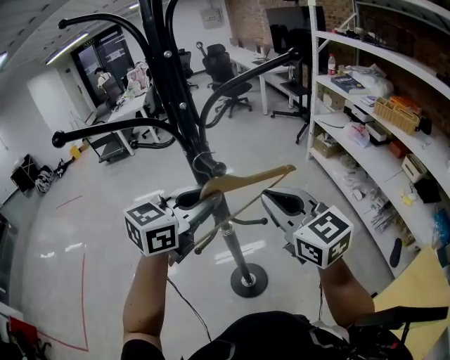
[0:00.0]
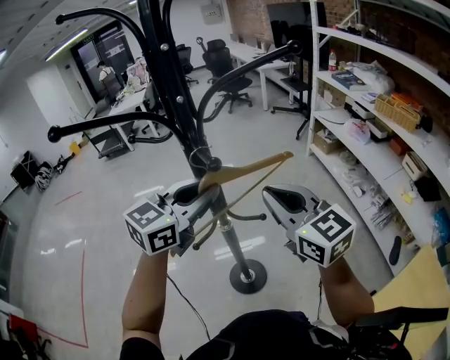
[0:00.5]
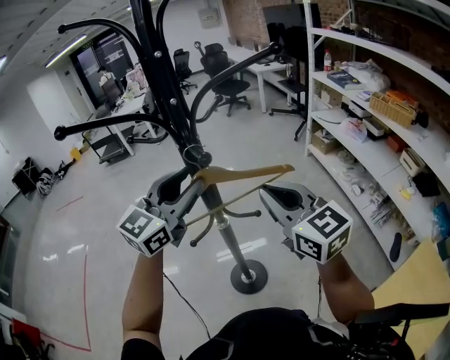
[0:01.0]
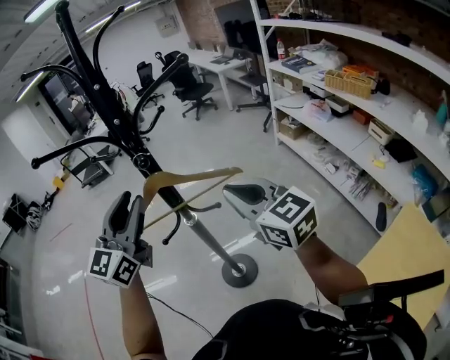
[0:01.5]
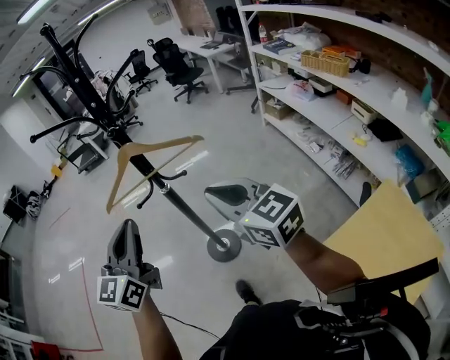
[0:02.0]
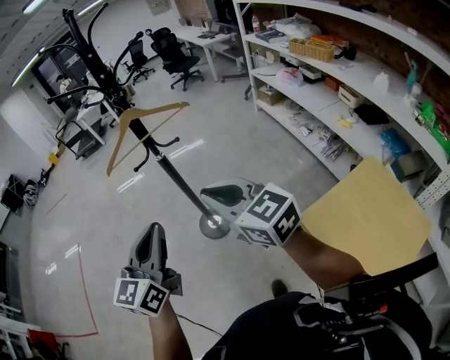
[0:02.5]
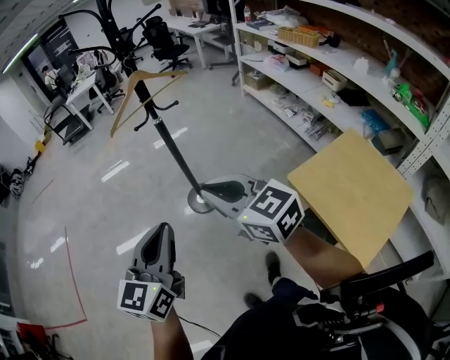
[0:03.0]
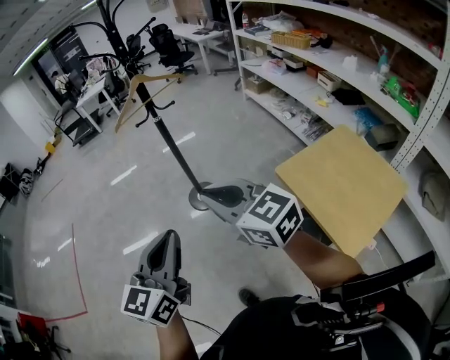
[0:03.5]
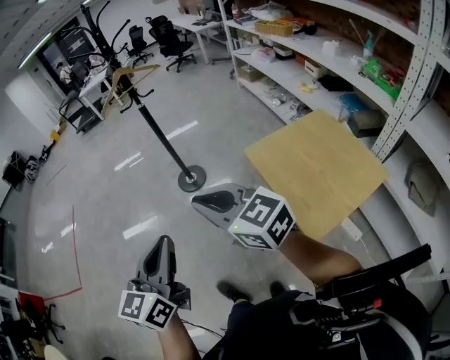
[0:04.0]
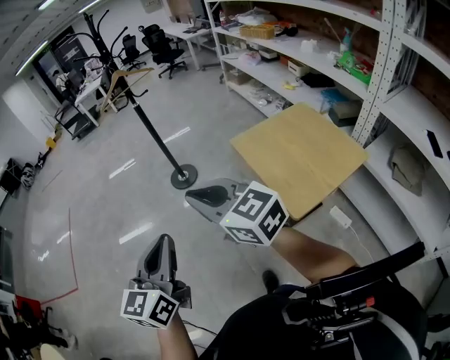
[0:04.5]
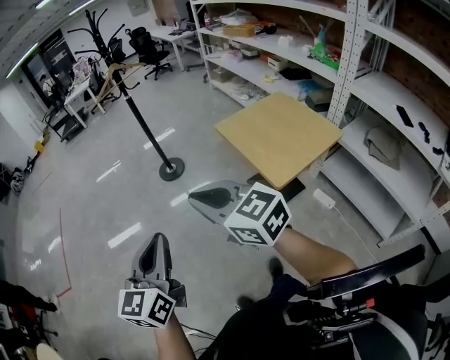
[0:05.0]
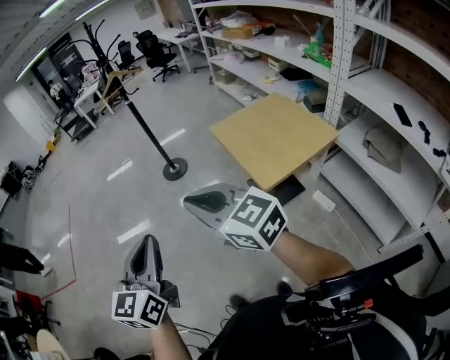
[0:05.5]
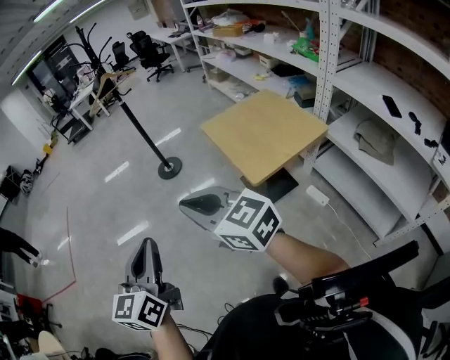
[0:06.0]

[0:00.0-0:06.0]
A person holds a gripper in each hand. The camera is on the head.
0.0 to 2.0 s: The left gripper moves backward, approximately 25 cm, swivels roughly 40 degrees, and opens, then closes again. The right gripper heads backward and to the right, covering approximately 20 cm.
2.0 to 4.0 s: The two grippers travel together, backward, some 60 cm.
4.0 to 6.0 s: The grippers both shift backward by roughly 35 cm.

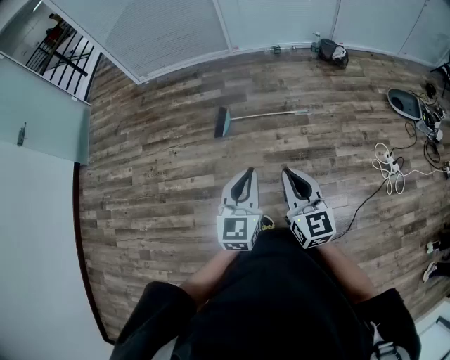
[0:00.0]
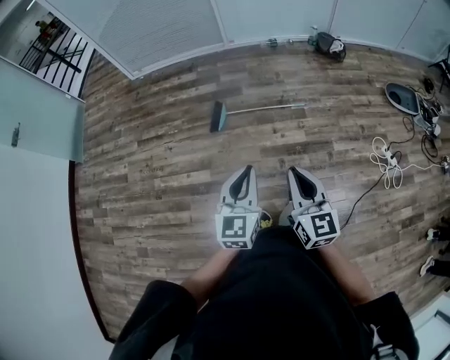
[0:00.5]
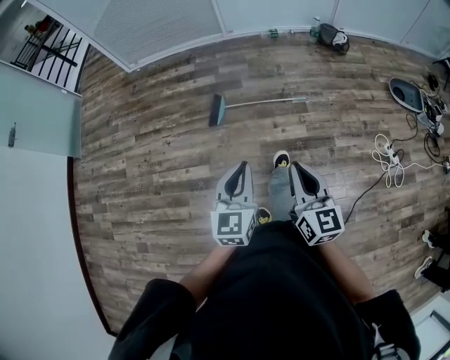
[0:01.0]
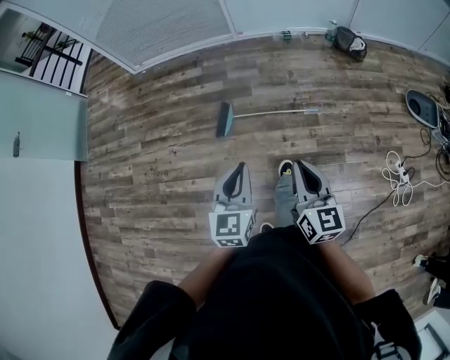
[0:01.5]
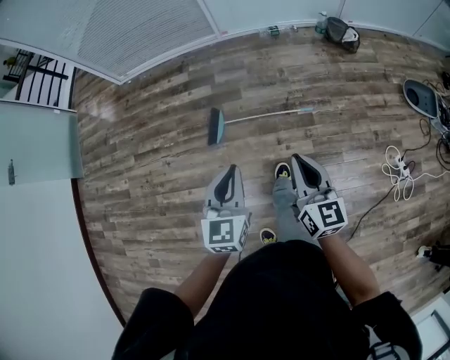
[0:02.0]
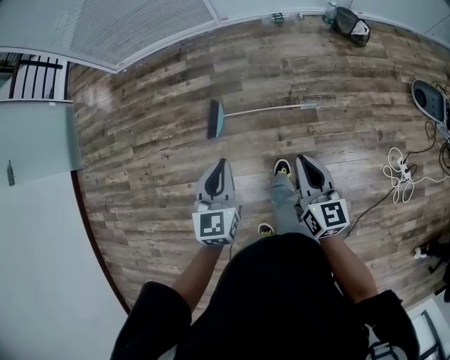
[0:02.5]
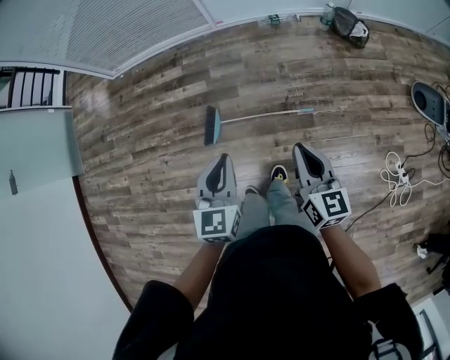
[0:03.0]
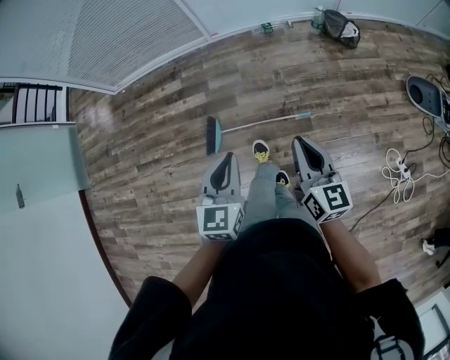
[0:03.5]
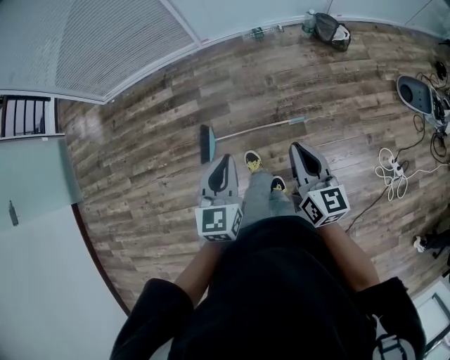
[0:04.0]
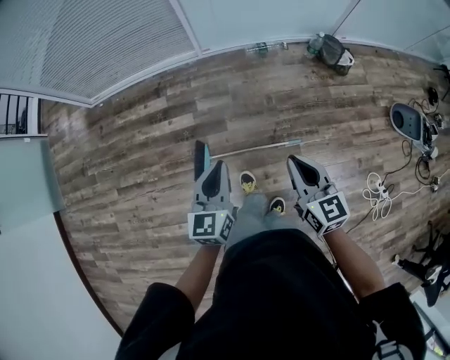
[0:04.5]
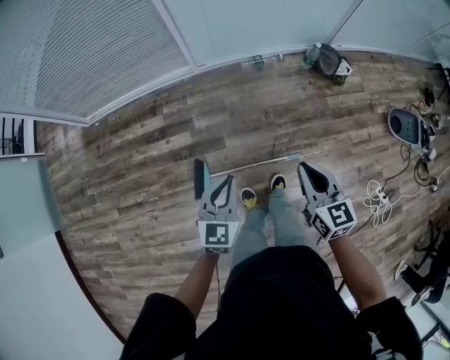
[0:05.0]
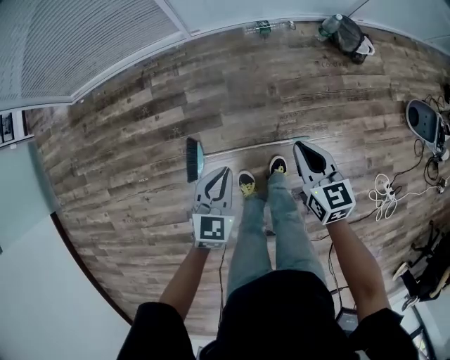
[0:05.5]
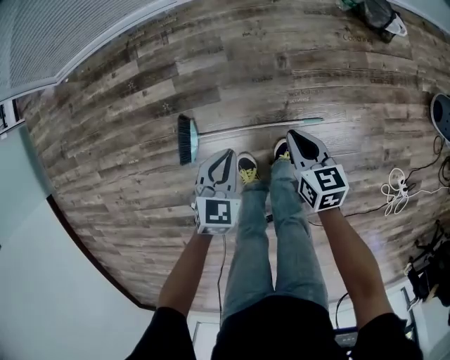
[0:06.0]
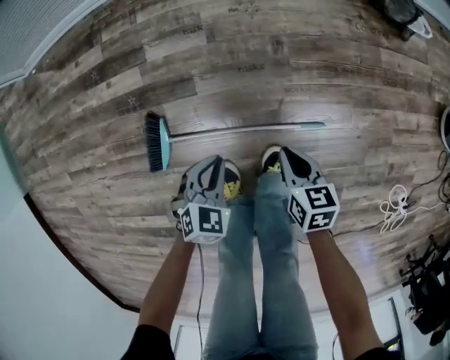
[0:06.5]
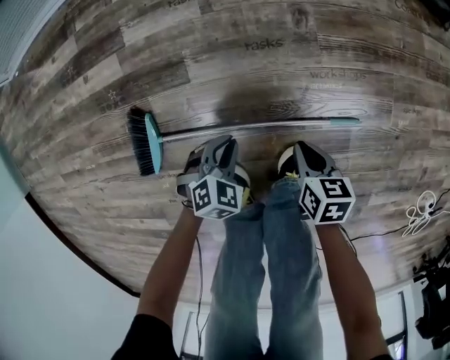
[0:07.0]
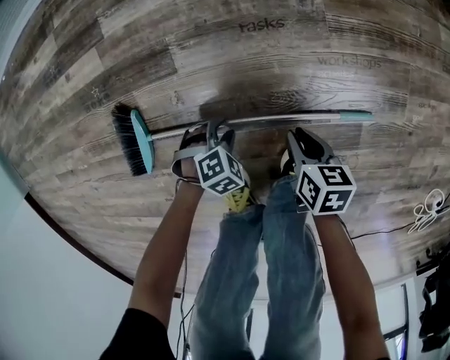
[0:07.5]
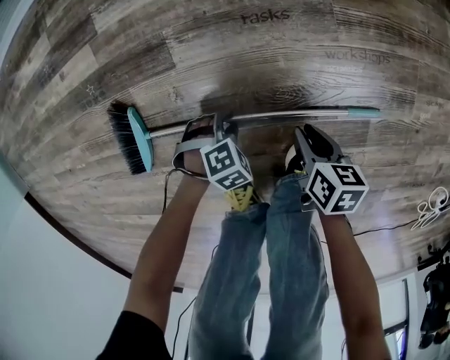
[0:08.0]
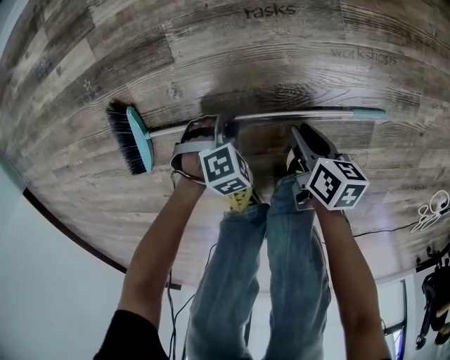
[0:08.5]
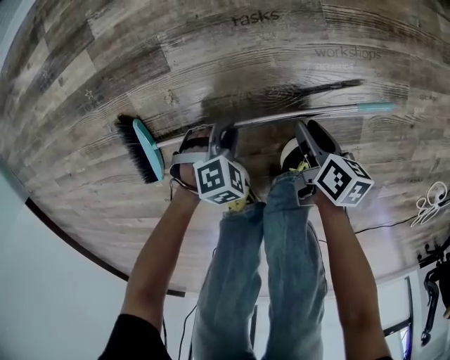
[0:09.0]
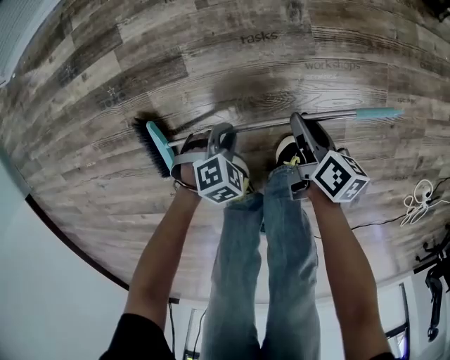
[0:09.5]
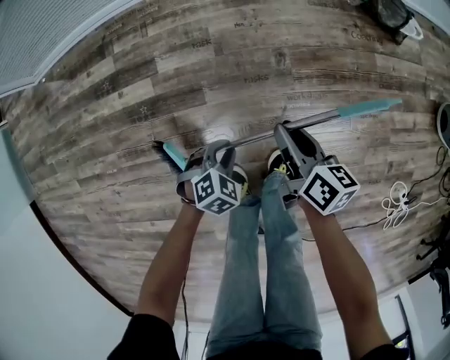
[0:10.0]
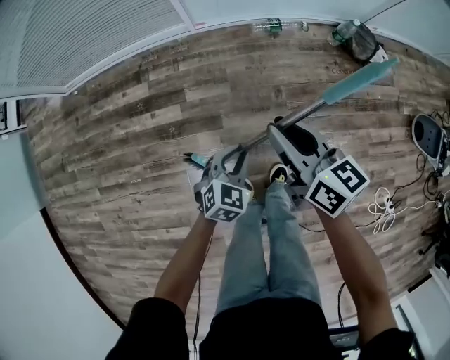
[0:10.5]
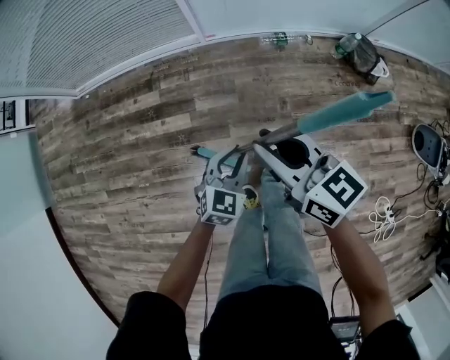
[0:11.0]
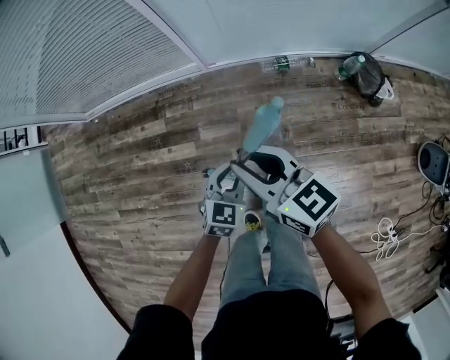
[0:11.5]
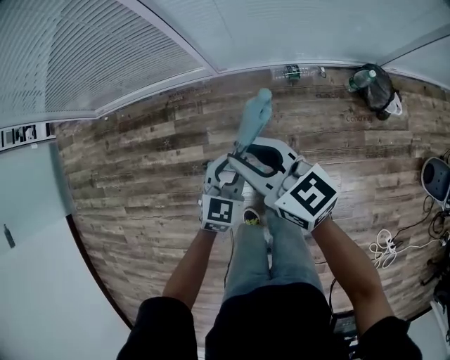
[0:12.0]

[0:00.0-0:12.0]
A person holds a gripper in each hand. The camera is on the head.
0.0 to 2.0 s: The grippers both shift forward by approximately 30 cm.
2.0 to 4.0 s: Both grippers move forward, roughly 20 cm.
4.0 to 6.0 s: Both grippers move downward and forward, some 50 cm. The right gripper rotates about 30 degrees. Meanwhile the left gripper turns by some 30 degrees.
6.0 to 8.0 s: The grippers both shift downward by roughly 50 cm. The right gripper changes its angle by some 30 degrees. Meanwhile the left gripper tilts its fingers some 40 degrees downward, and opens up.
8.0 to 10.0 s: The two grippers go about 35 cm upward. The right gripper turns by about 30 degrees. Meanwhile the left gripper rotates roughly 20 degrees.
10.0 to 12.0 s: The grippers both shift upward by approximately 40 cm. The left gripper tips its fingers upward by approximately 30 degrees; the right gripper rotates some 50 degrees.

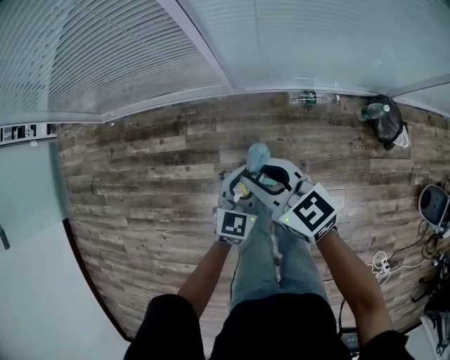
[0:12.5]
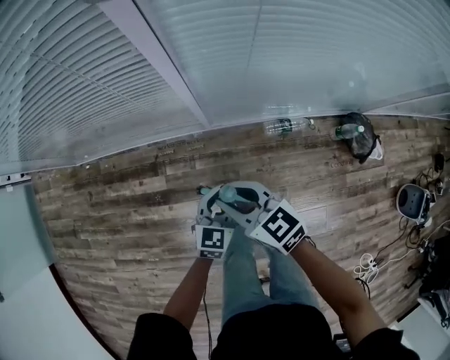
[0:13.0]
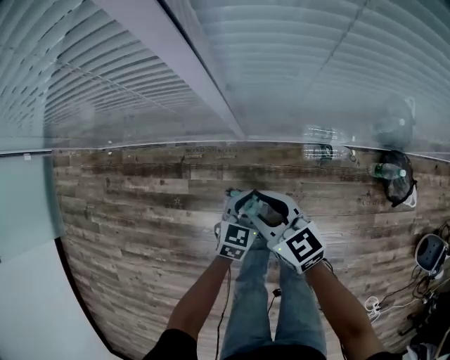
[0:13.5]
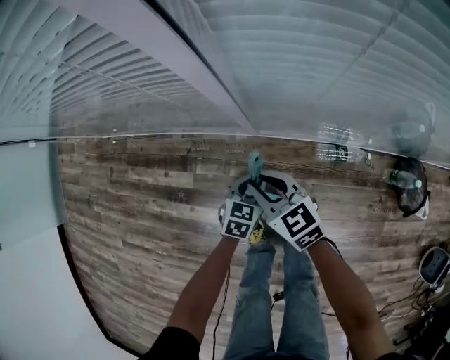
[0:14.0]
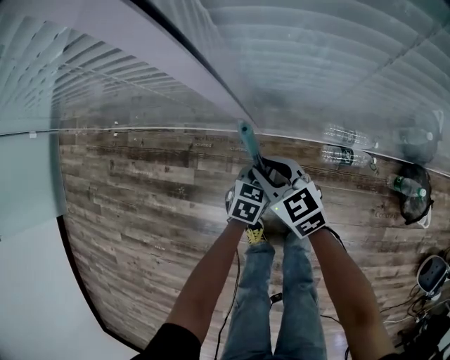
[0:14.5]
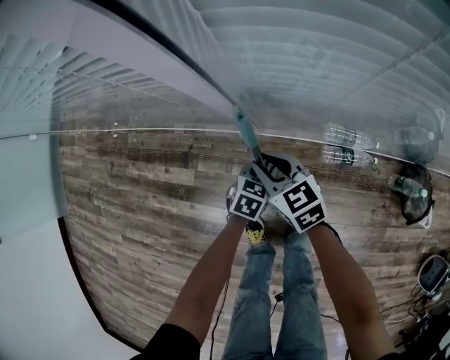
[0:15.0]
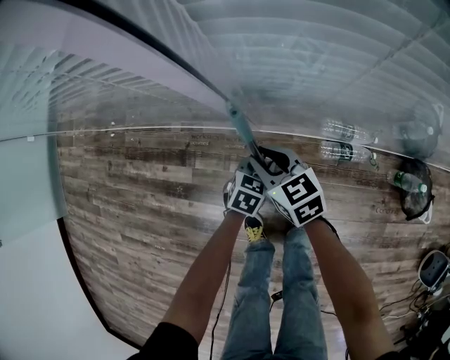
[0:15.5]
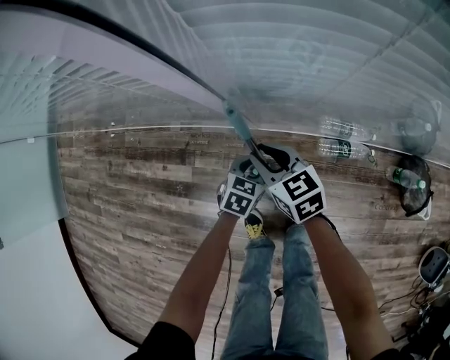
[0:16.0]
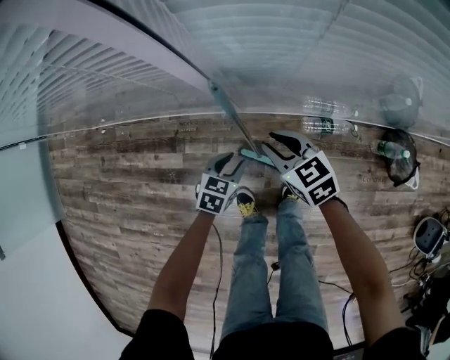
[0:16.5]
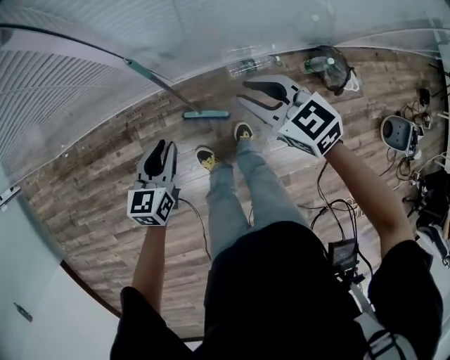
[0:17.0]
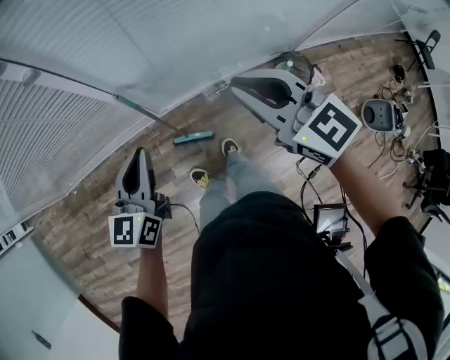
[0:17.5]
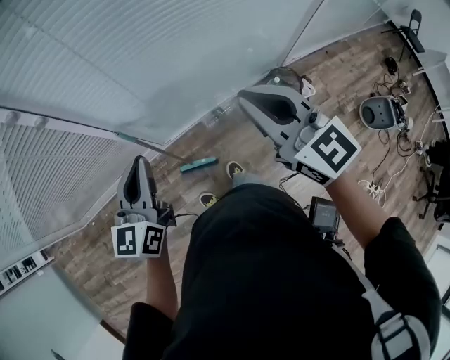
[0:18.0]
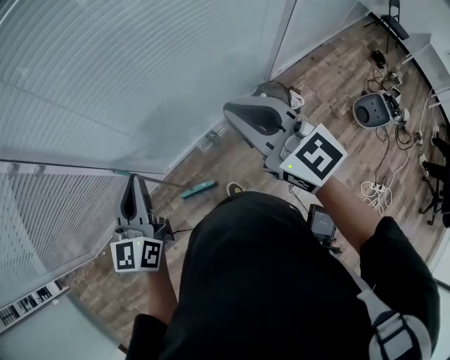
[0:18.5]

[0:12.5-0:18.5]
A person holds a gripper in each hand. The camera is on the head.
12.5 to 14.5 s: Both grippers travel together forward and downward, approximately 40 cm. The left gripper rotates about 20 degrees.
14.5 to 16.5 s: The right gripper moves to the right, about 5 cm. The left gripper shifts some 5 cm backward.
16.5 to 18.5 s: The right gripper travels upward and to the right by approximately 60 cm, angles its fingers upward, by about 40 degrees, and closes its fingers; the left gripper shifts roughly 60 cm upward, points its fingers approximately 50 degrees further upward, and closes.

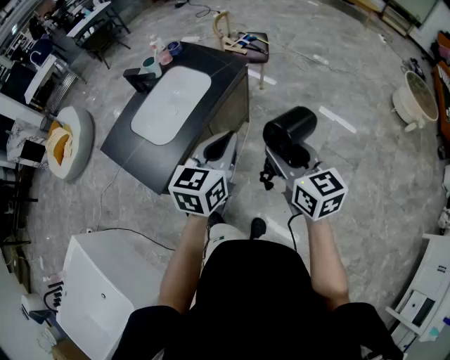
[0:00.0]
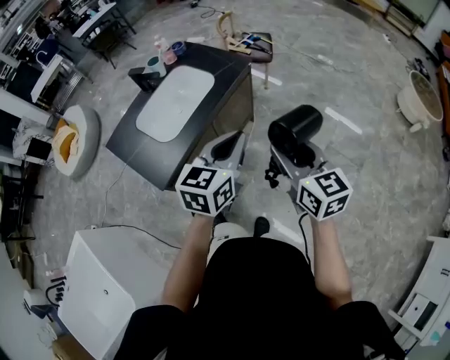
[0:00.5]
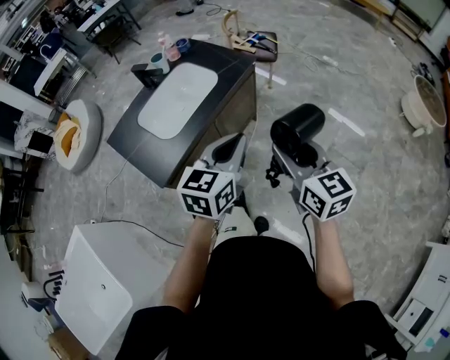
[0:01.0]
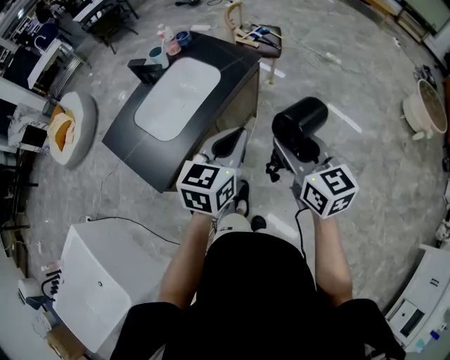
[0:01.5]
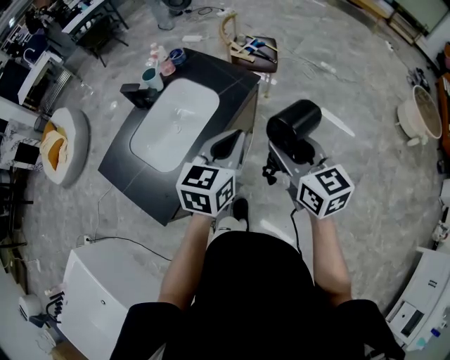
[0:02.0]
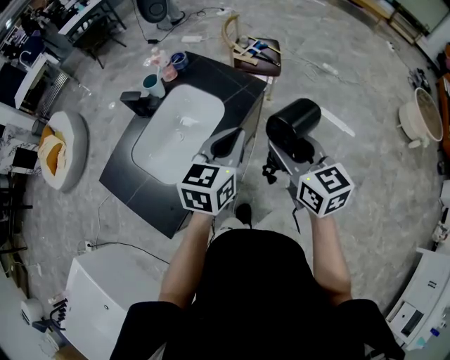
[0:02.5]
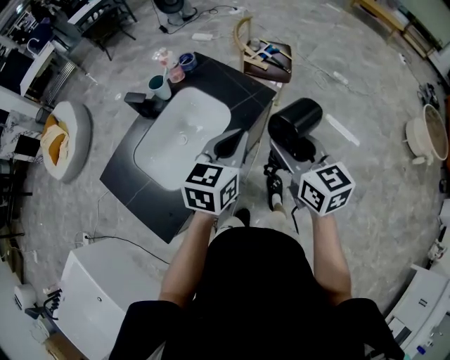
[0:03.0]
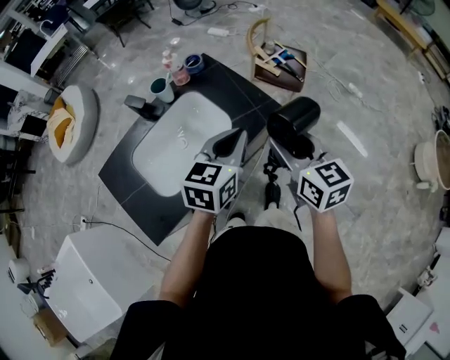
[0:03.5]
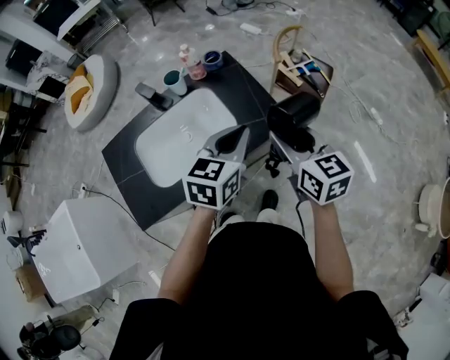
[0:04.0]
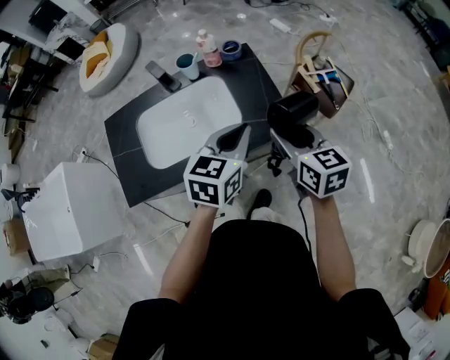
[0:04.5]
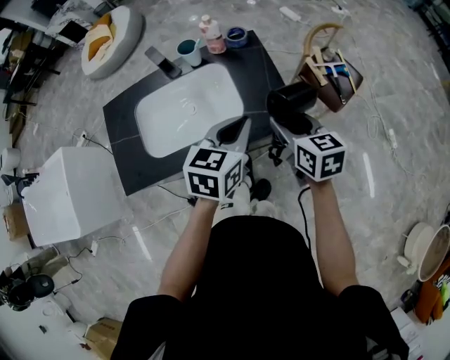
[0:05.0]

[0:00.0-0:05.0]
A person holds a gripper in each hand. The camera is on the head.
0.0 to 2.5 s: Both grippers travel together forward, roughly 20 cm.
2.5 to 5.0 s: The right gripper changes place by roughly 30 cm, and turns by some 40 degrees; the left gripper shifts by approximately 20 cm, and changes its angle by about 40 degrees.
